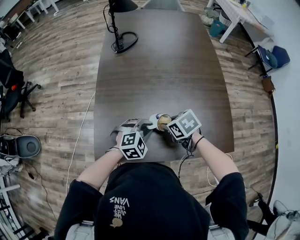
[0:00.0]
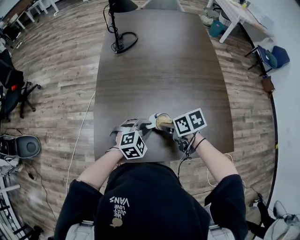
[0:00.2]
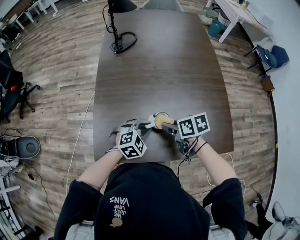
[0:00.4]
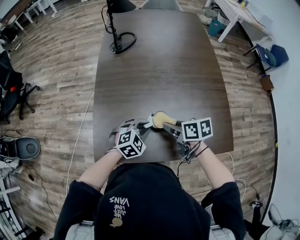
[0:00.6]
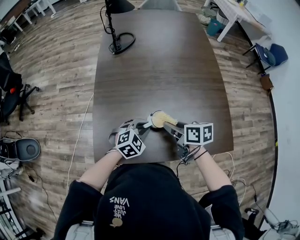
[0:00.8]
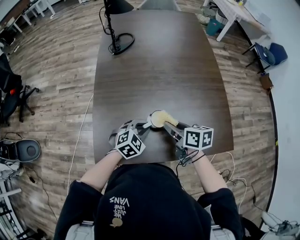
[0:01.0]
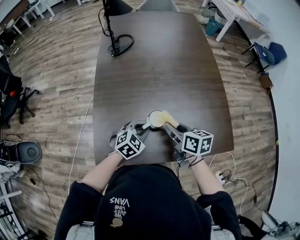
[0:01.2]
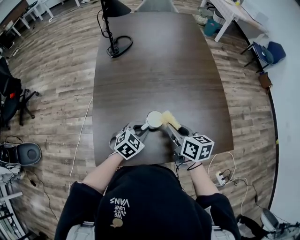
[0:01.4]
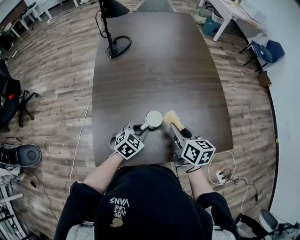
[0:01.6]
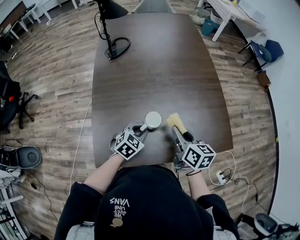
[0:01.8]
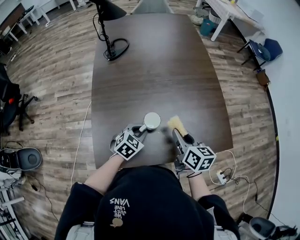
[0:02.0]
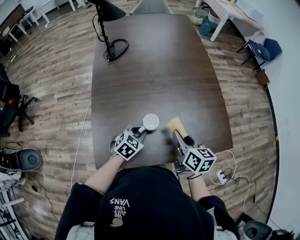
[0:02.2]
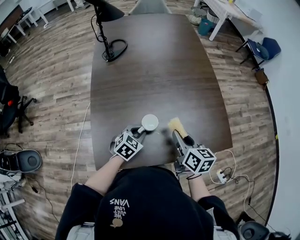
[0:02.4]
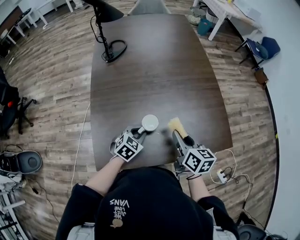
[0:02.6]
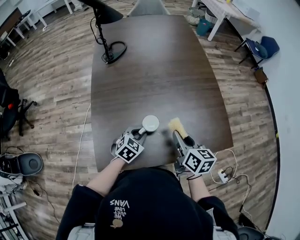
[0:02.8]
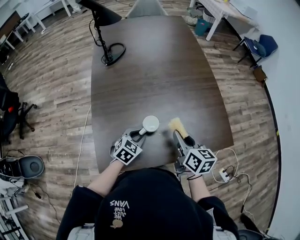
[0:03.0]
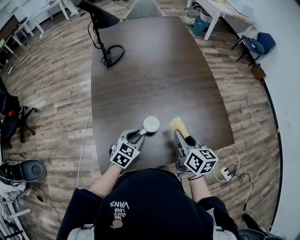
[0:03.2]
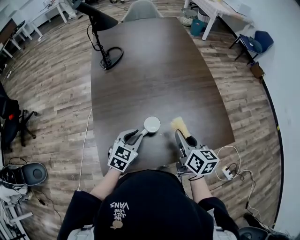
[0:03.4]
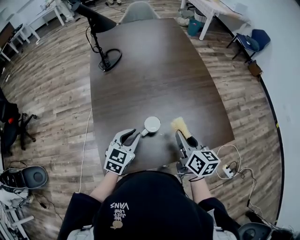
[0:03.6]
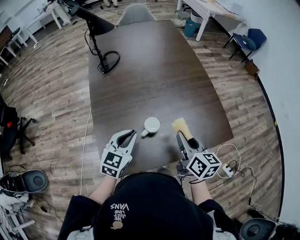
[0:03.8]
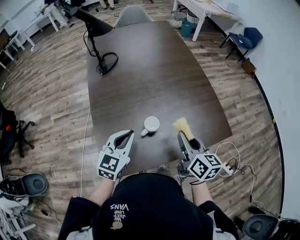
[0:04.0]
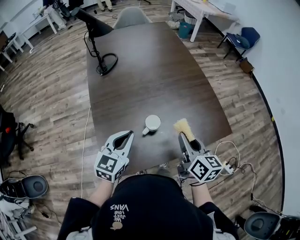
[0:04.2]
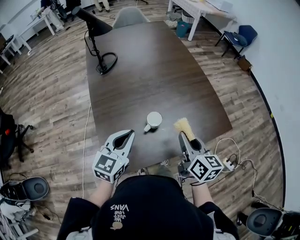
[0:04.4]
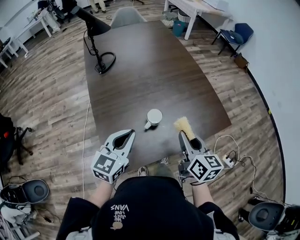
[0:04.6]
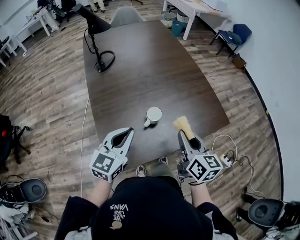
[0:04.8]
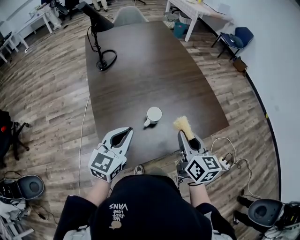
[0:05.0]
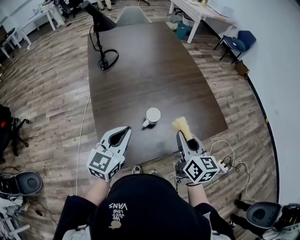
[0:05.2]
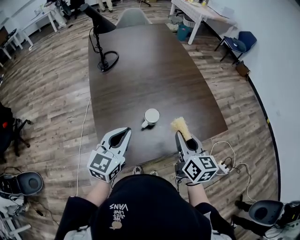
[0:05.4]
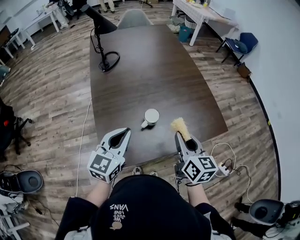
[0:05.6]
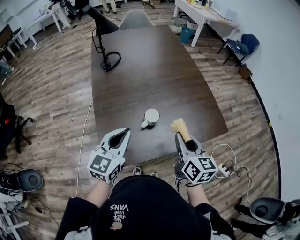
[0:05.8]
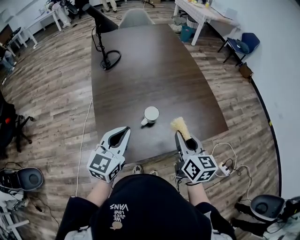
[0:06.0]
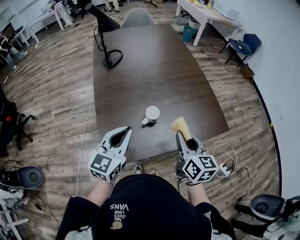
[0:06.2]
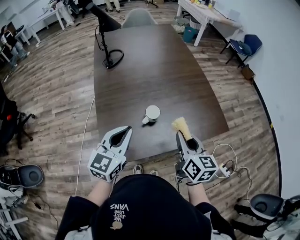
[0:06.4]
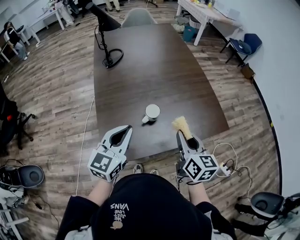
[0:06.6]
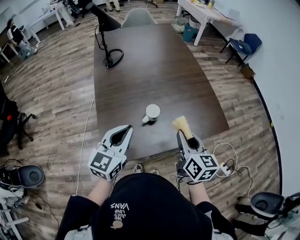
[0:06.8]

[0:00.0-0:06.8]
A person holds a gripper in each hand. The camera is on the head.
0:00.0 to 0:01.4: The left gripper changes its angle by some 20 degrees; the right gripper goes roughly 5 cm upward, and tilts its fingers roughly 30 degrees upward.
0:01.4 to 0:02.8: The grippers move only a little.
0:02.8 to 0:04.0: The left gripper travels upward by roughly 15 cm, and turns by approximately 30 degrees. Meanwhile the right gripper travels upward by roughly 5 cm.
0:04.0 to 0:05.4: The left gripper shifts about 10 cm backward and upward; the right gripper shifts roughly 5 cm backward.
0:05.4 to 0:06.8: There are only small adjustments of the grippers.

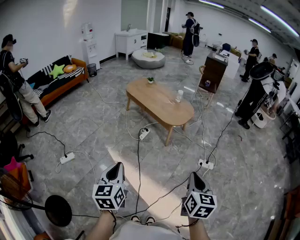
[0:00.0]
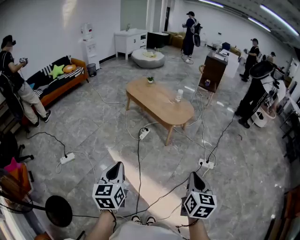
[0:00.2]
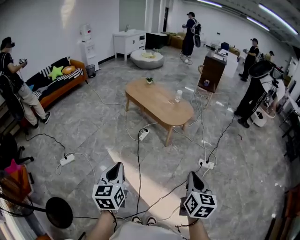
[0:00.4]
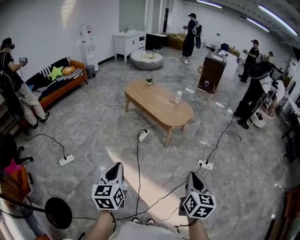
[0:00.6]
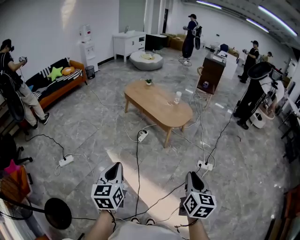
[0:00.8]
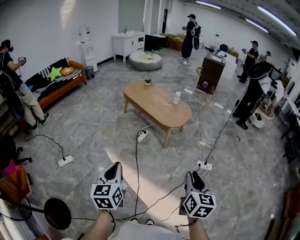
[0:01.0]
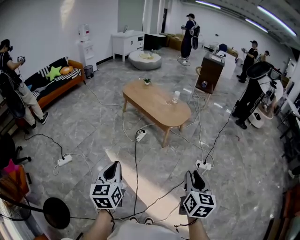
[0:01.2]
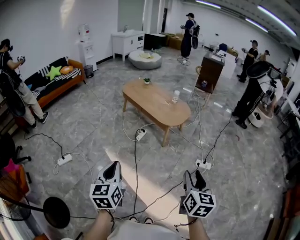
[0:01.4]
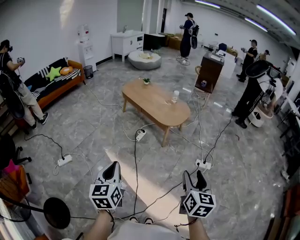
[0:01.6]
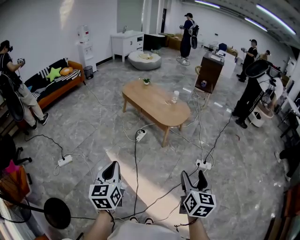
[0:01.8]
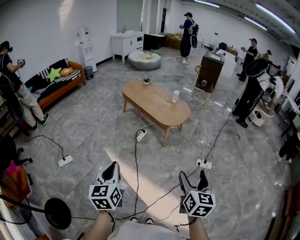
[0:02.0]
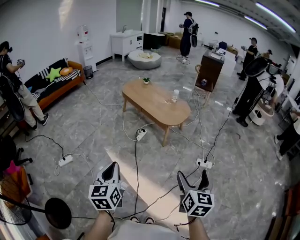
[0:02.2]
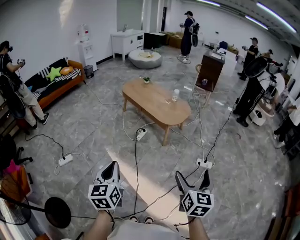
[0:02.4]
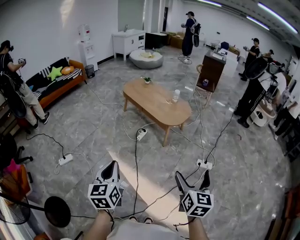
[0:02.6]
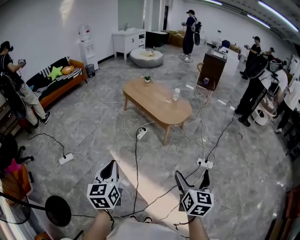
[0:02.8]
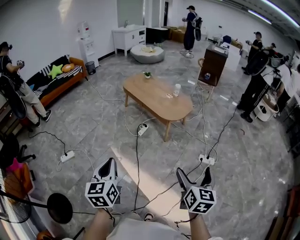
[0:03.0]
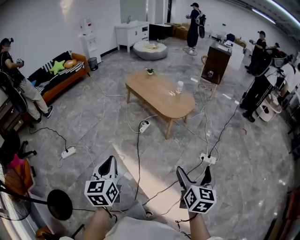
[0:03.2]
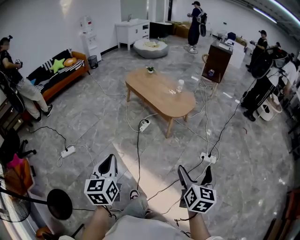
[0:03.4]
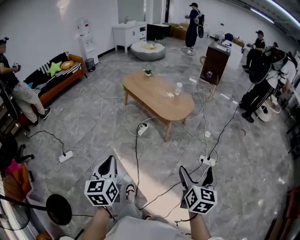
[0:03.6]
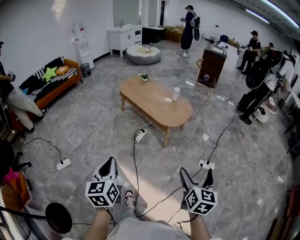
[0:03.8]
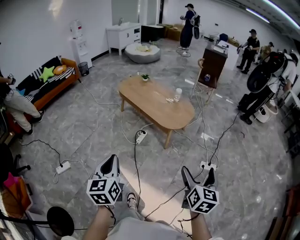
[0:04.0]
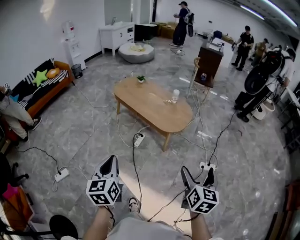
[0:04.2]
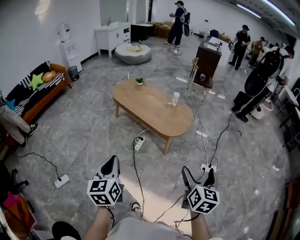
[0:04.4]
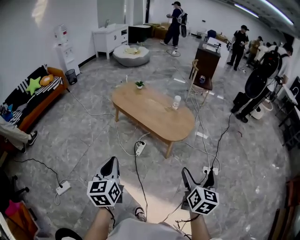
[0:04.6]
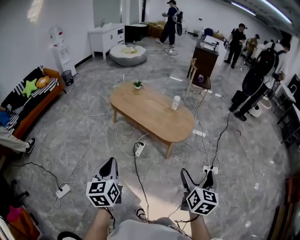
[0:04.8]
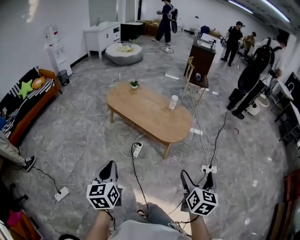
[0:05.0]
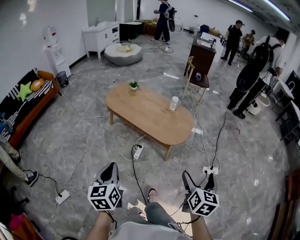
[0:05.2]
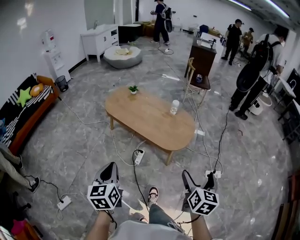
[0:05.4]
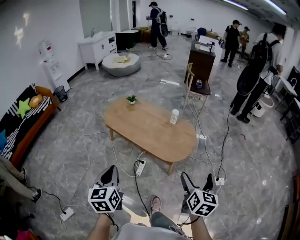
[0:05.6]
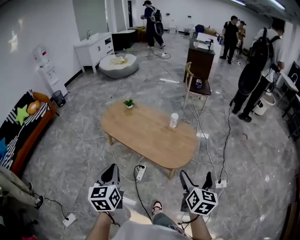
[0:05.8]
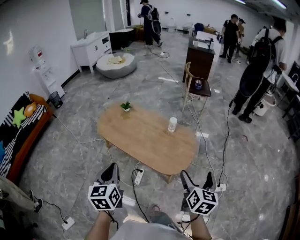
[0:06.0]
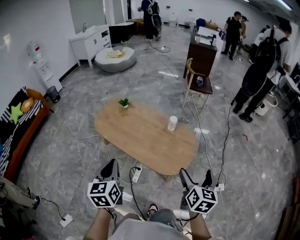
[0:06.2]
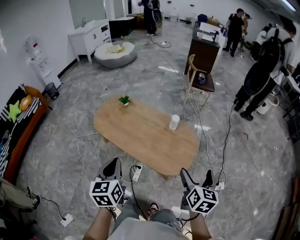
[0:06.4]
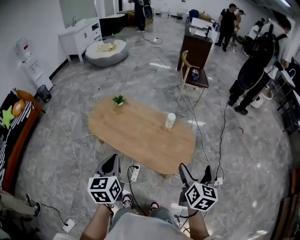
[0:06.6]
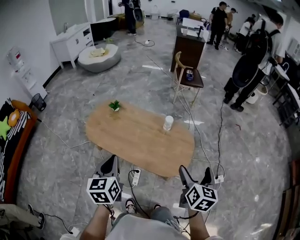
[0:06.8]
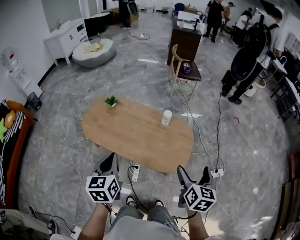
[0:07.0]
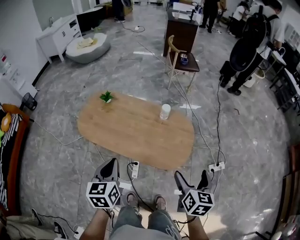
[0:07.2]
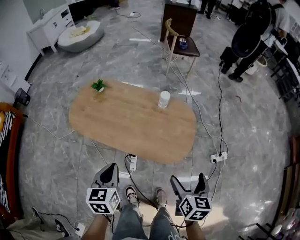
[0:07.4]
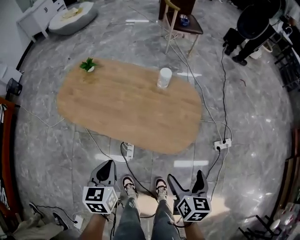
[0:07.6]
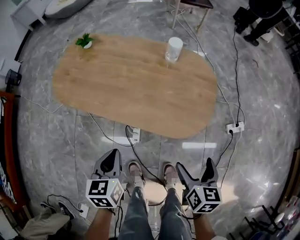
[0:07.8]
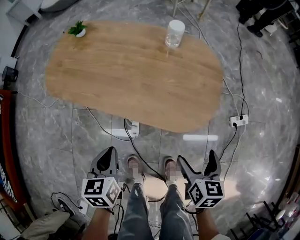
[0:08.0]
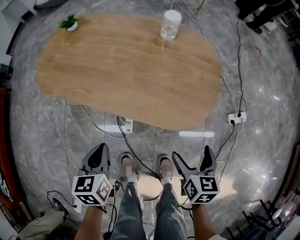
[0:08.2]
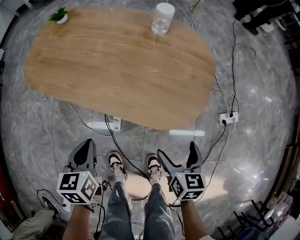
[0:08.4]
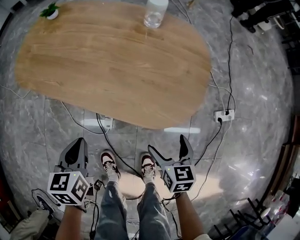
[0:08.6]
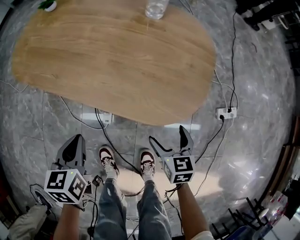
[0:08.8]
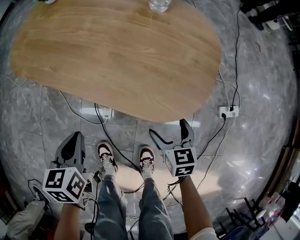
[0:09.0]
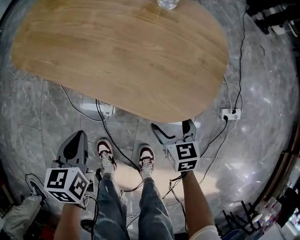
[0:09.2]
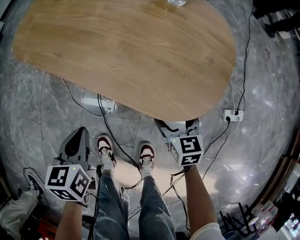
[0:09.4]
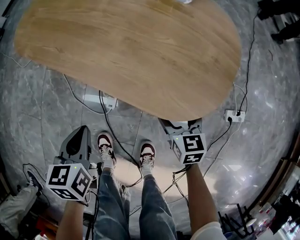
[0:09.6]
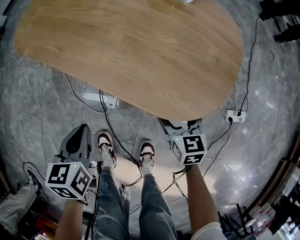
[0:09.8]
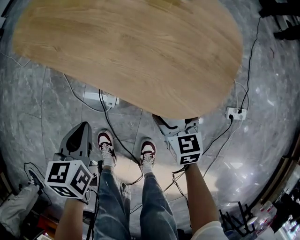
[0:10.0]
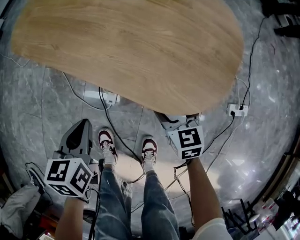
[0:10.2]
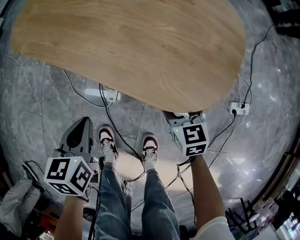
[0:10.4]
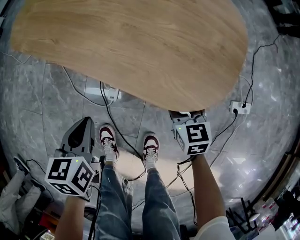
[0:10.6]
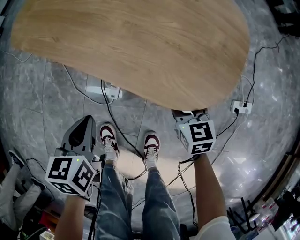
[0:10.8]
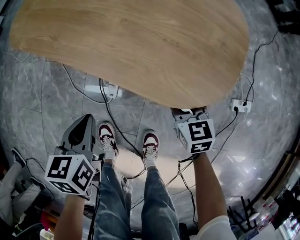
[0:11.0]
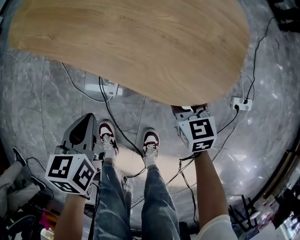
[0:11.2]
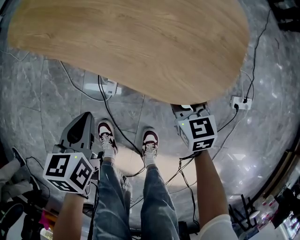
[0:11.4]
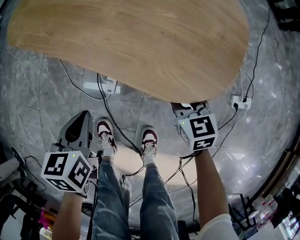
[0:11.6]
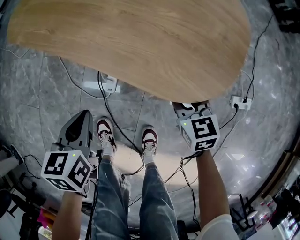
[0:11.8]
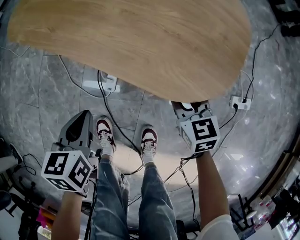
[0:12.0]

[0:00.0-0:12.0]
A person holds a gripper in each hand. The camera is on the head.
0:00.0 to 0:01.6: The right gripper opens.
0:01.6 to 0:03.0: The right gripper opens its fingers.
0:03.0 to 0:04.4: The left gripper heads forward, covering about 25 cm, while the right gripper heads forward and to the left, covering some 20 cm.
0:04.4 to 0:06.0: The grippers both shift forward by roughly 35 cm.
0:06.0 to 0:07.6: The left gripper heads downward and forward, covering some 25 cm, and rotates about 30 degrees. Meanwhile the right gripper is displaced downward by approximately 25 cm, and swivels about 20 degrees.
0:07.6 to 0:09.0: The two grippers go about 25 cm downward. The right gripper turns by some 30 degrees.
0:09.0 to 0:10.4: The right gripper changes place by about 5 cm.
0:10.4 to 0:12.0: The grippers make only small movements.

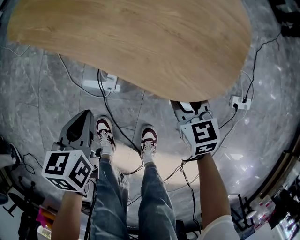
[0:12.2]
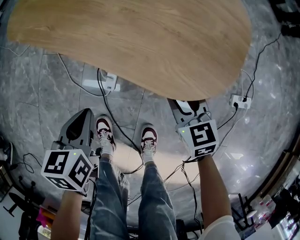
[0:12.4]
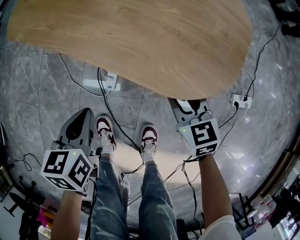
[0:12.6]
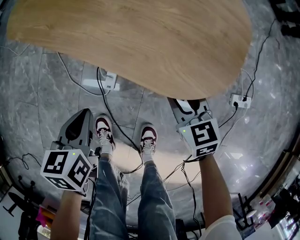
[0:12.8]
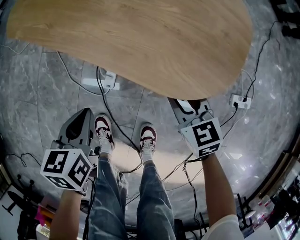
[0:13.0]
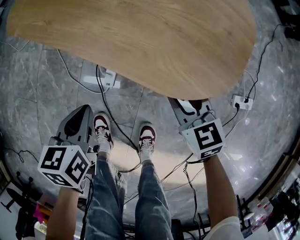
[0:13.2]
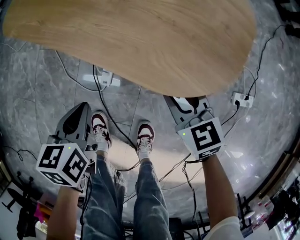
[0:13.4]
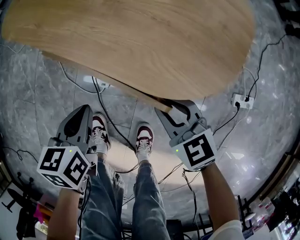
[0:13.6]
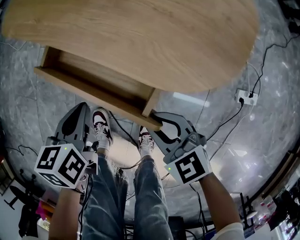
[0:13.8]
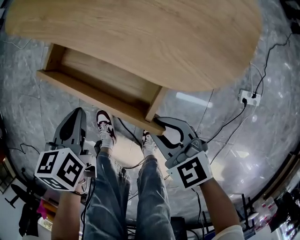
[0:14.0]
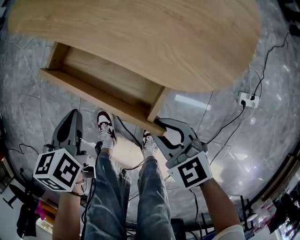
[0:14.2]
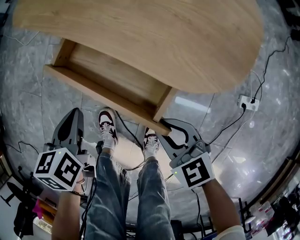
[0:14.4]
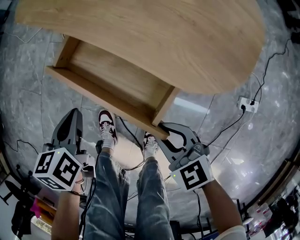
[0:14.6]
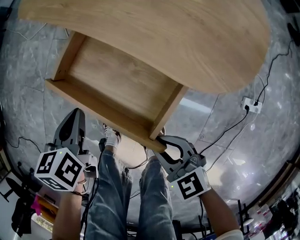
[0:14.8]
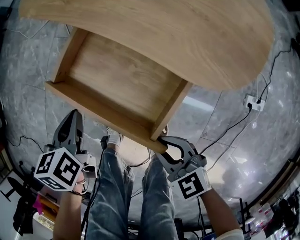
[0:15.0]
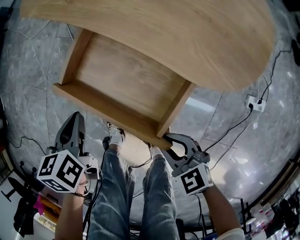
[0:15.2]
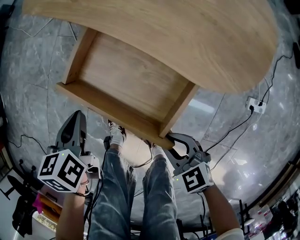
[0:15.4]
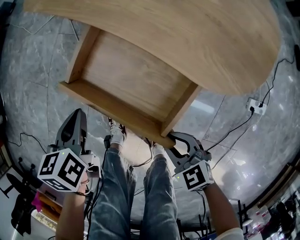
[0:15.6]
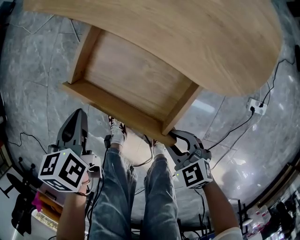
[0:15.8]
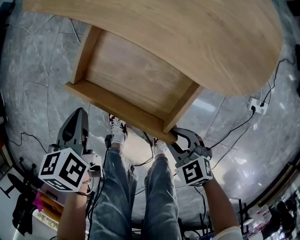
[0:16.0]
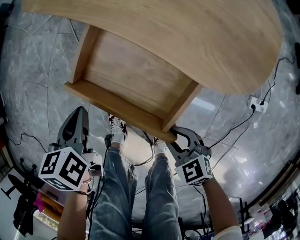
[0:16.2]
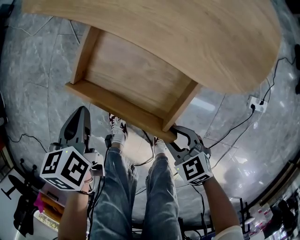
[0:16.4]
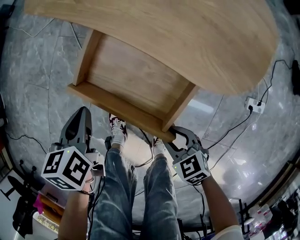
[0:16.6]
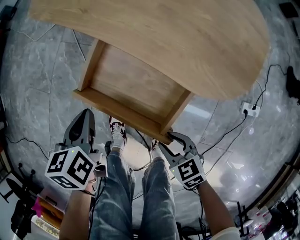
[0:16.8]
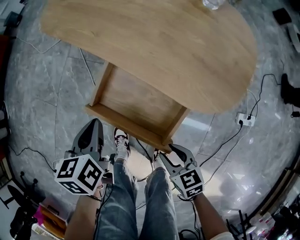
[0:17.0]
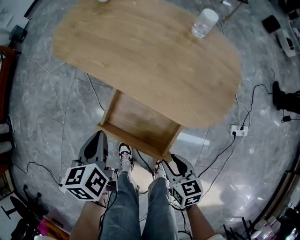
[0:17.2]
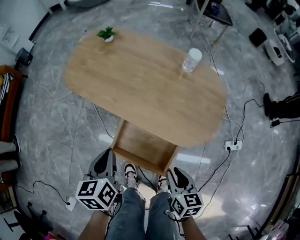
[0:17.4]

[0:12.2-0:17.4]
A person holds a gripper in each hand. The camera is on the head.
0:12.2 to 0:14.0: The right gripper shifts some 15 cm backward and to the left, and changes its angle by some 30 degrees.
0:14.0 to 0:15.6: The grippers both shift to the left by roughly 10 cm.
0:15.6 to 0:17.4: The two grippers go roughly 20 cm upward. The right gripper turns by about 60 degrees.
